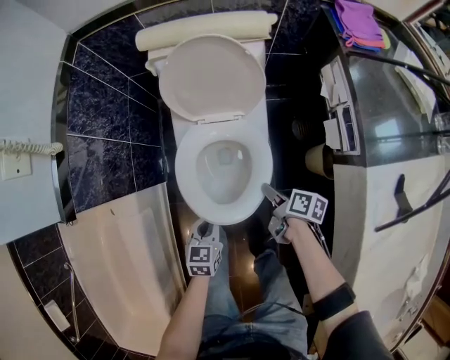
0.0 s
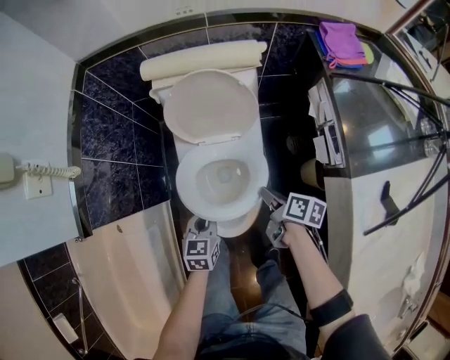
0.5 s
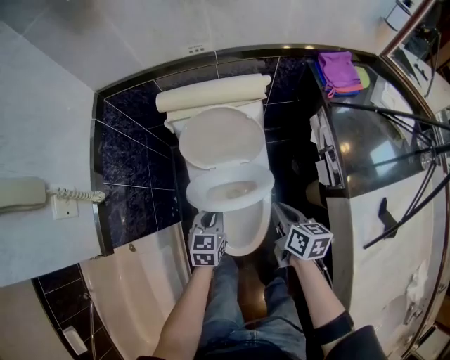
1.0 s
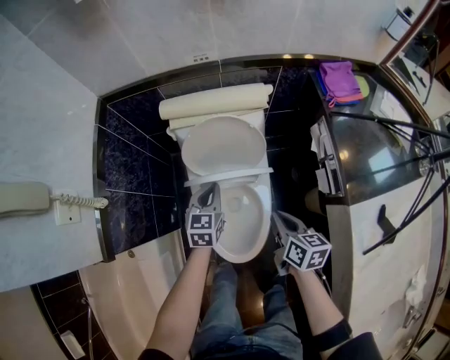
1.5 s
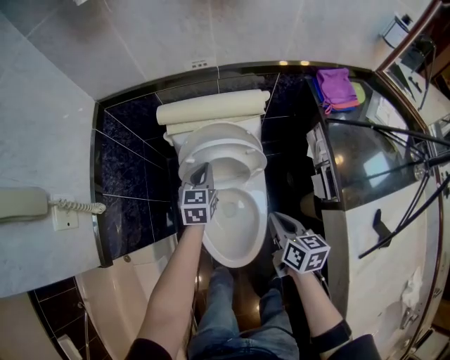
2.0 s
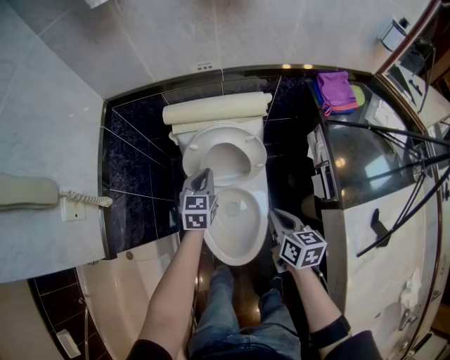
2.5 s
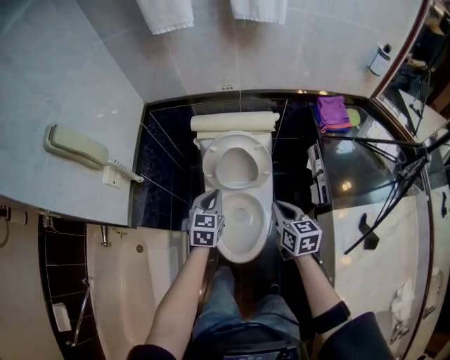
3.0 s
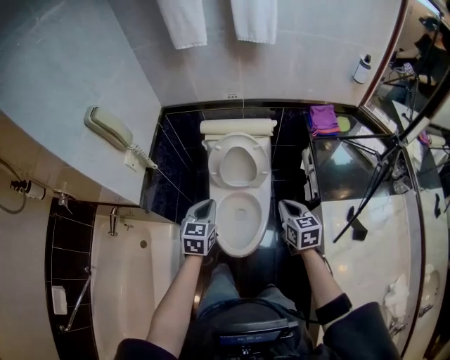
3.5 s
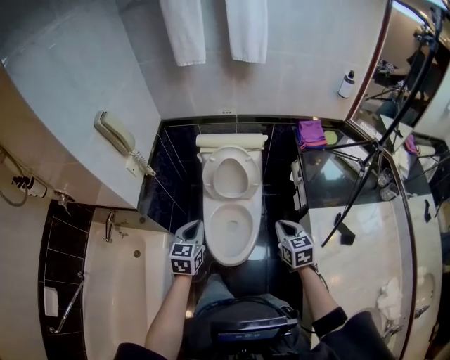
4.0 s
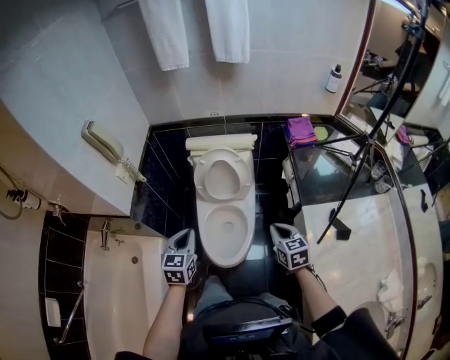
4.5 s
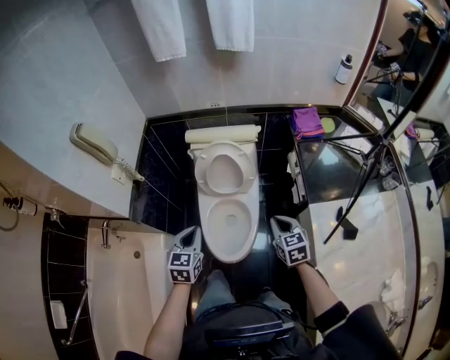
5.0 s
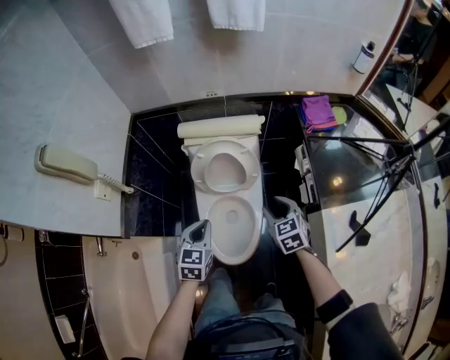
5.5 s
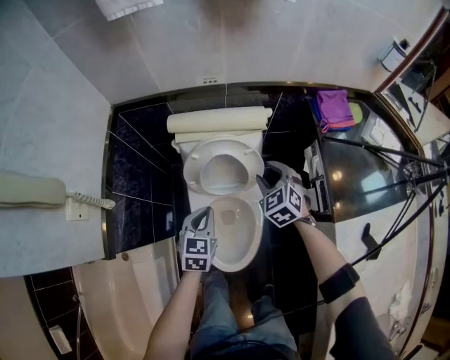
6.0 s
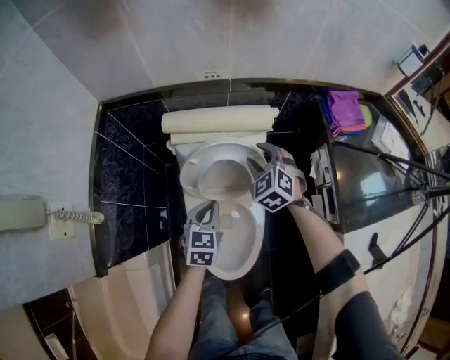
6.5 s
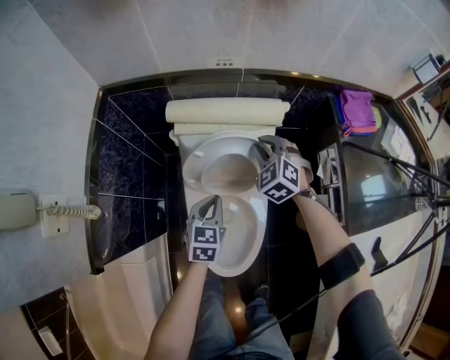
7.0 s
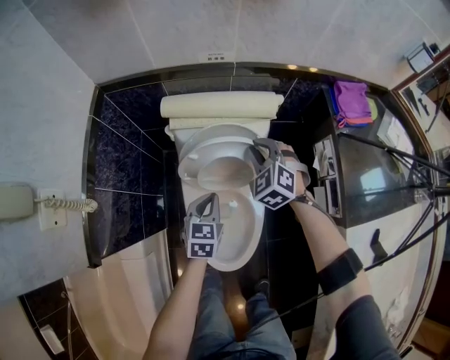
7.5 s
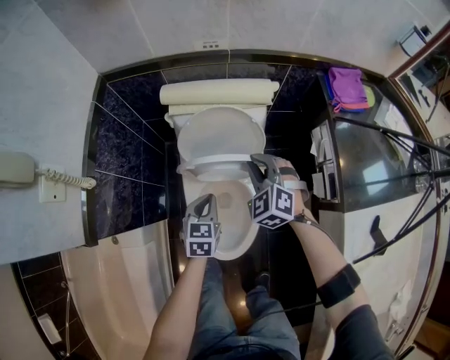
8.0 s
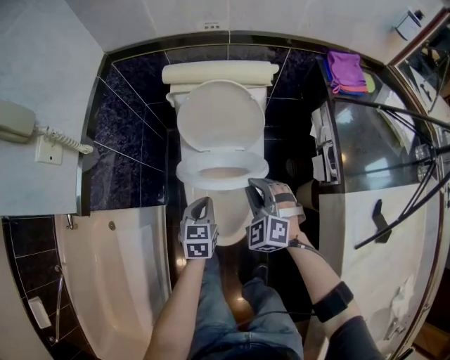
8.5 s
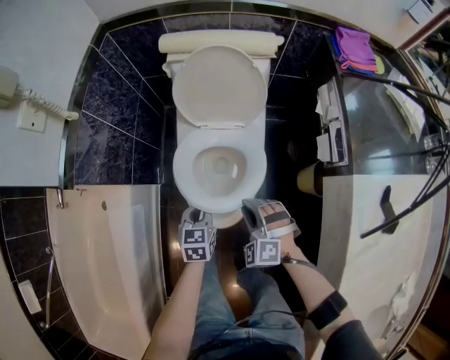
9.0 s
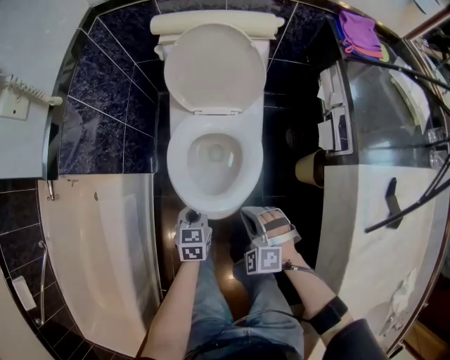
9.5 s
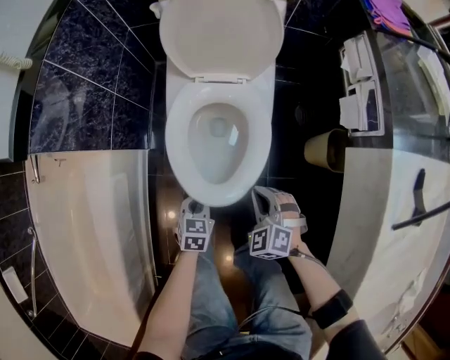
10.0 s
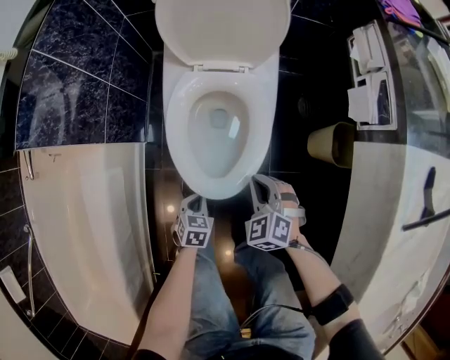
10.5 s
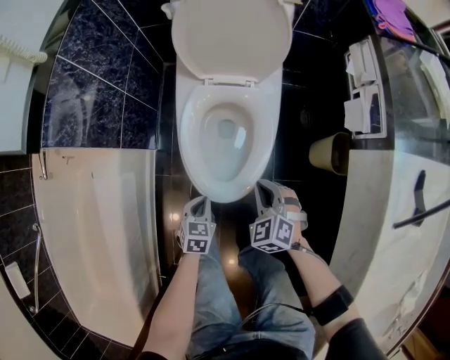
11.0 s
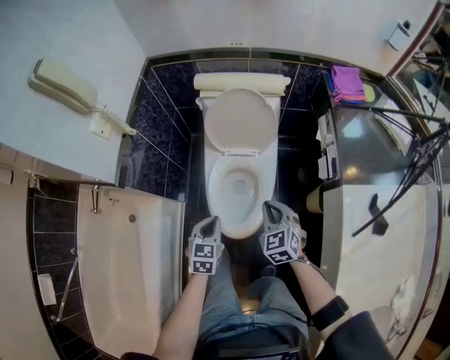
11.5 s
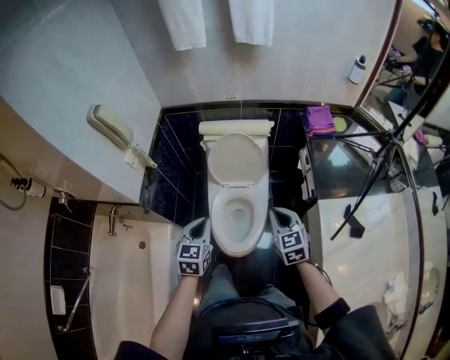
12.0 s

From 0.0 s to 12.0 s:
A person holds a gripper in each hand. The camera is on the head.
From 0.0 s to 2.0 s: The right gripper is displaced upward and forward by about 25 cm, changes its angle by some 40 degrees, and closes up. Meanwhile the left gripper is displaced forward and upward by about 40 cm.
From 2.0 s to 4.0 s: The right gripper moves backward and upward, approximately 25 cm, and turns by about 30 degrees. The left gripper heads backward and upward, covering roughly 40 cm.
From 4.0 s to 6.0 s: The left gripper heads forward and downward, covering approximately 30 cm. Meanwhile the right gripper heads forward, covering approximately 30 cm, turns by some 30 degrees, and opens its fingers.
From 6.0 s to 8.0 s: The left gripper moves downward, some 10 cm; the right gripper reaches approximately 10 cm forward, then returns, and closes its fingers.
From 8.0 s to 10.0 s: The two grippers go about 40 cm backward and downward.
From 10.0 s to 12.0 s: Both grippers travel together upward, roughly 50 cm. The left gripper rotates some 30 degrees. The right gripper changes its angle by about 40 degrees.

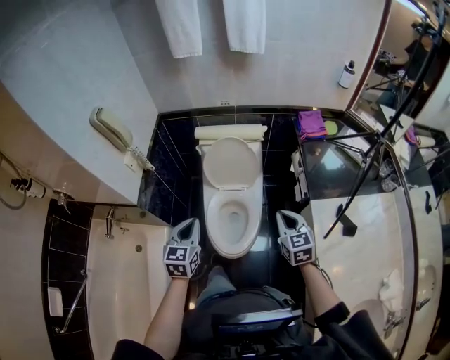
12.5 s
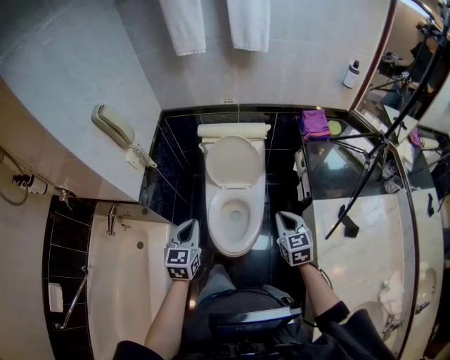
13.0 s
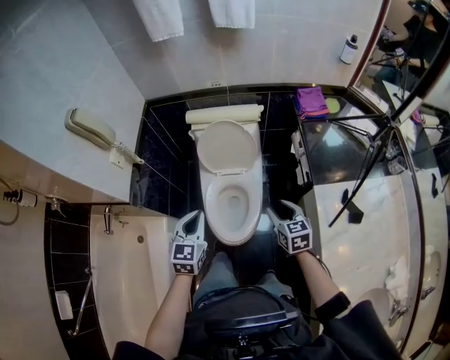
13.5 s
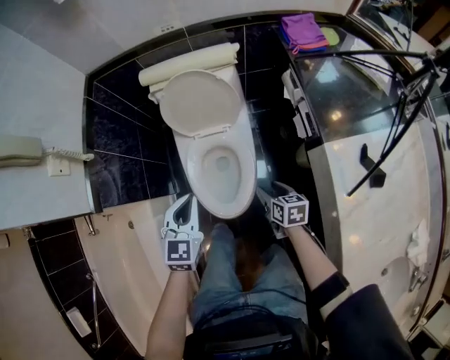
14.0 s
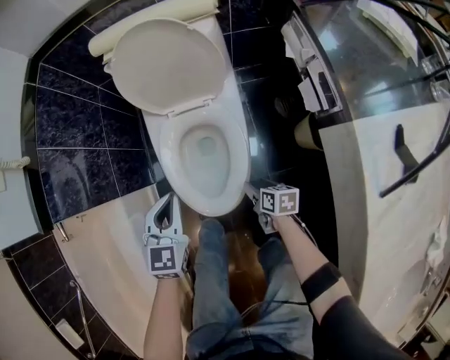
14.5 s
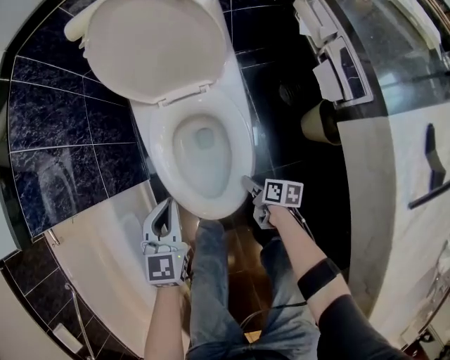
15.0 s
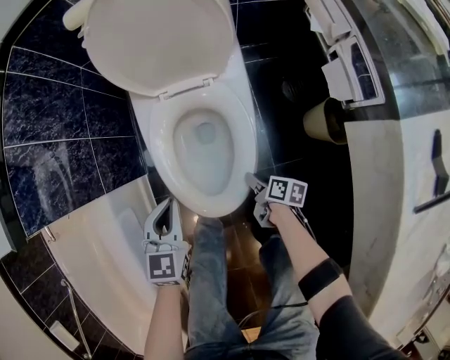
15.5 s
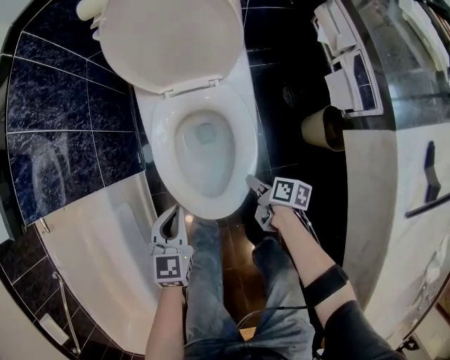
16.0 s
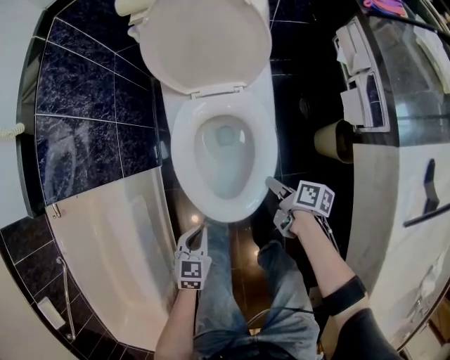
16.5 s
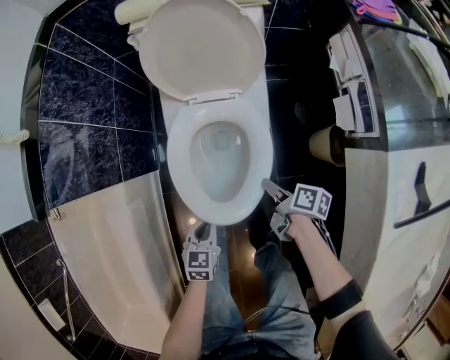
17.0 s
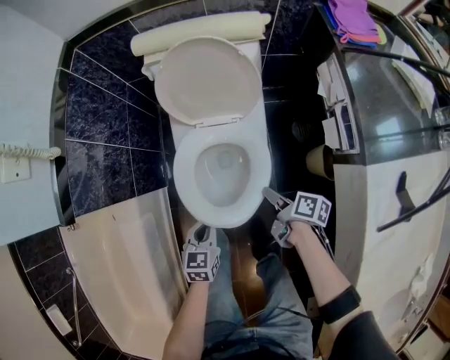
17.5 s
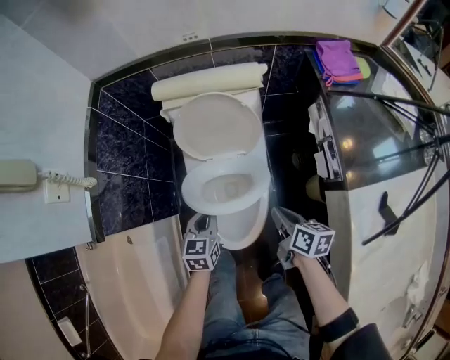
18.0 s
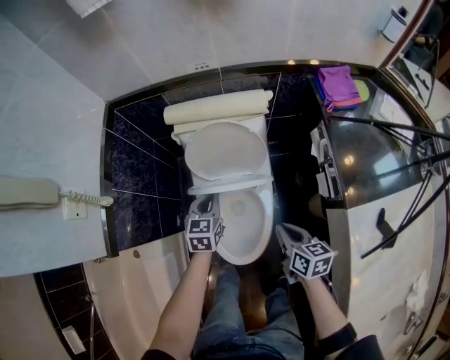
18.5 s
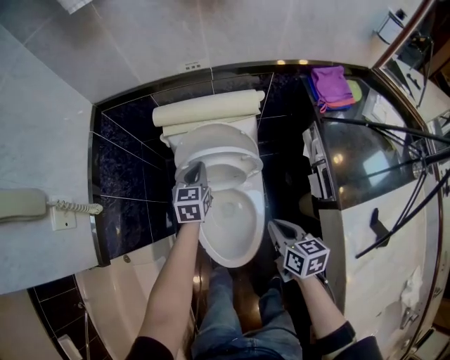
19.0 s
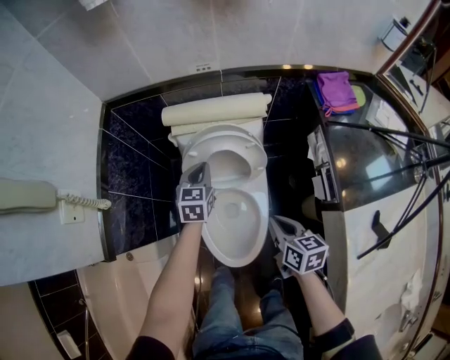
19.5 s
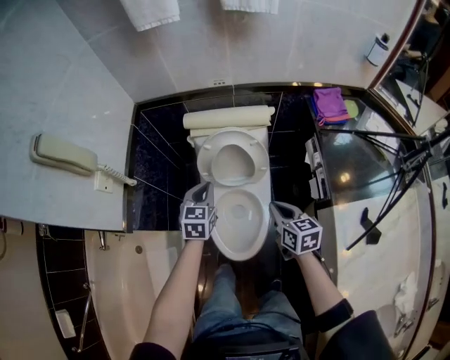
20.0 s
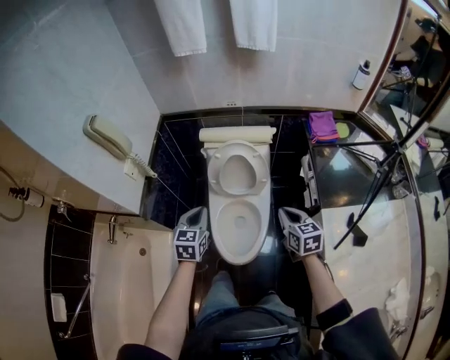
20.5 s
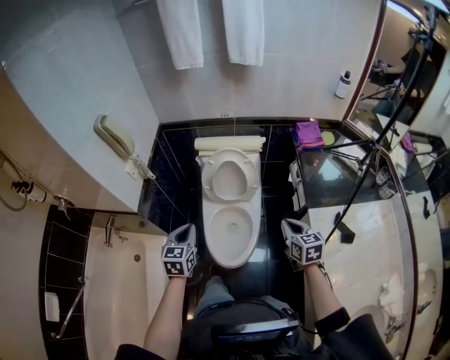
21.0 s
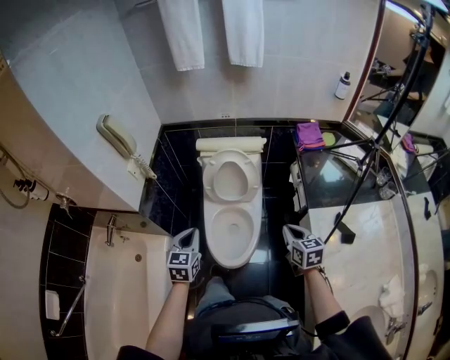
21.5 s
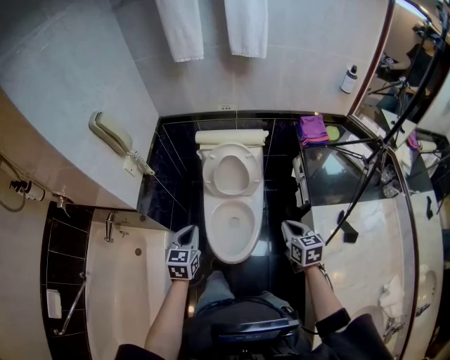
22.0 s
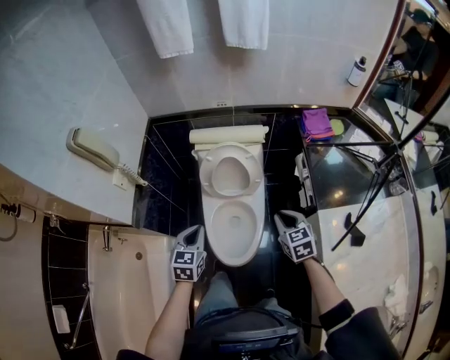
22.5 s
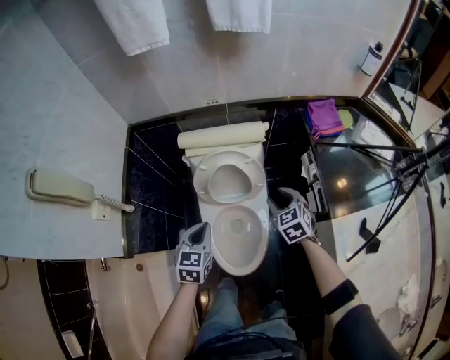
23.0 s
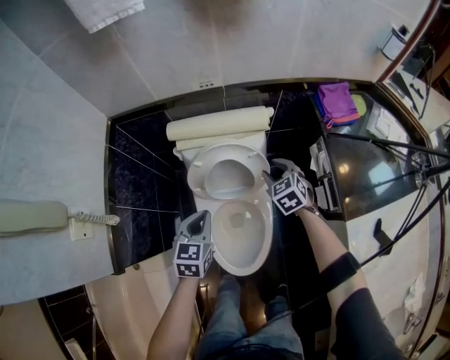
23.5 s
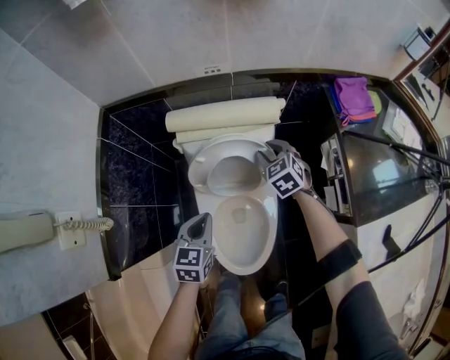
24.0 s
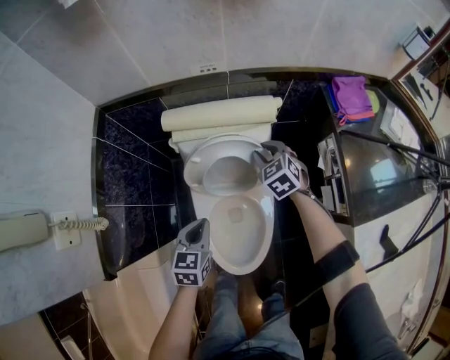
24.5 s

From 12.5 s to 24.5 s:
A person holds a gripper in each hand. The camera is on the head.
From 12.5 s to 14.5 s: The left gripper heads downward, covering roughly 30 cm; the right gripper heads downward, covering some 50 cm, rotates around the line of its fingers by approximately 50 degrees, clockwise from behind, and opens its fingers.
From 14.5 s to 16.5 s: The right gripper travels downward and back again, approximately 10 cm each way, rotates approximately 30 degrees, and closes; the left gripper shifts some 20 cm downward and backward, and turns by about 20 degrees.
From 16.5 s to 18.5 s: The right gripper goes roughly 30 cm upward, rotates around the line of its fingers by approximately 40 degrees, counterclockwise from behind, and closes. The left gripper shifts about 40 cm forward and upward.
From 18.5 s to 20.5 s: The left gripper travels upward and backward by roughly 25 cm. The right gripper is displaced upward by approximately 15 cm, and swivels roughly 20 degrees.
From 20.5 s to 22.5 s: The right gripper goes backward and returns, about 10 cm each way. Meanwhile the left gripper goes backward and returns, about 10 cm each way.
From 22.5 s to 24.5 s: The left gripper heads downward and forward, covering approximately 25 cm, while the right gripper moves forward and downward, about 40 cm.

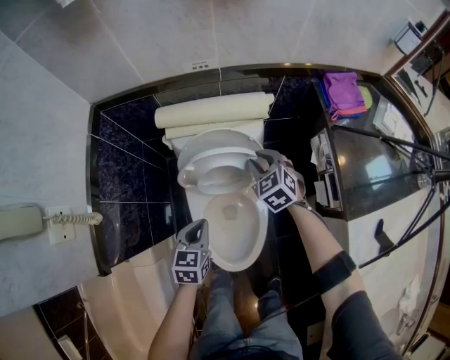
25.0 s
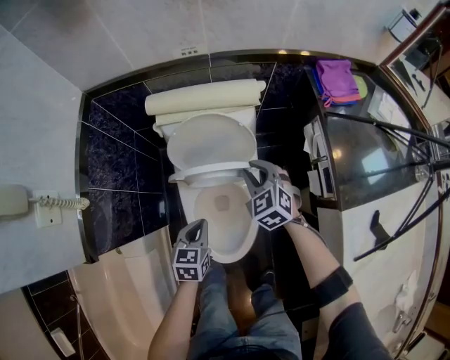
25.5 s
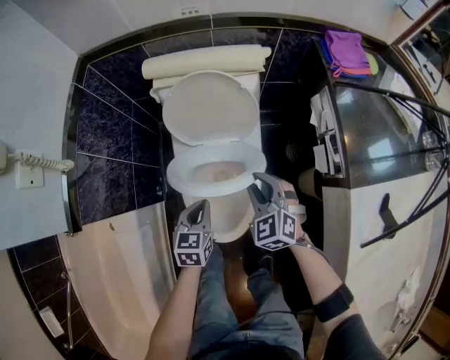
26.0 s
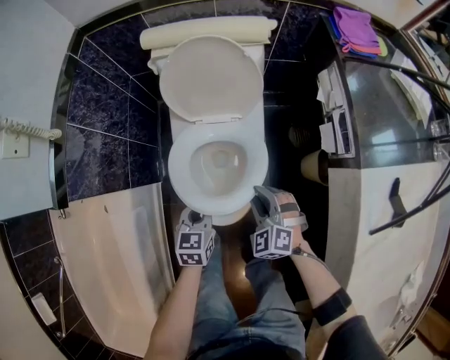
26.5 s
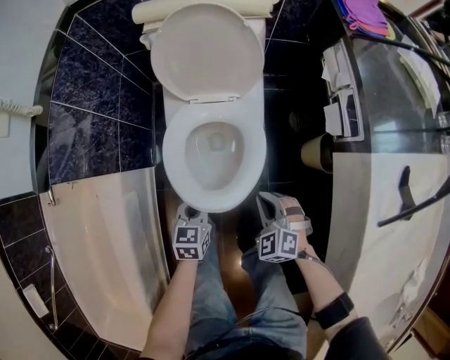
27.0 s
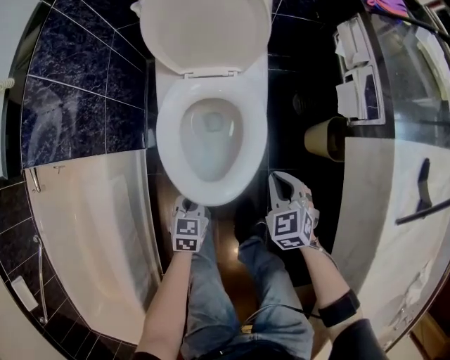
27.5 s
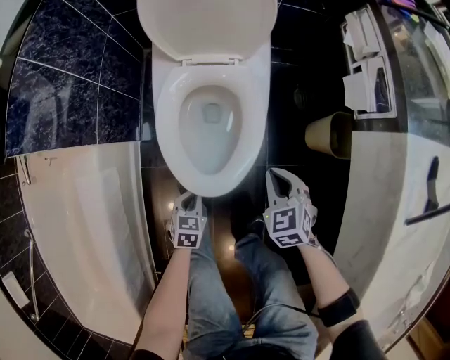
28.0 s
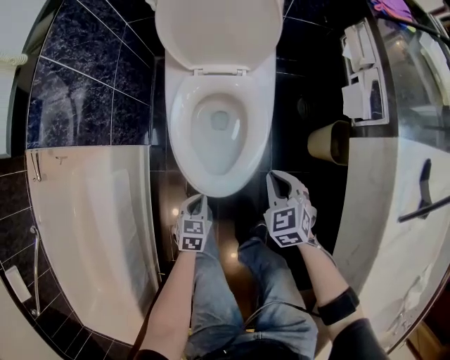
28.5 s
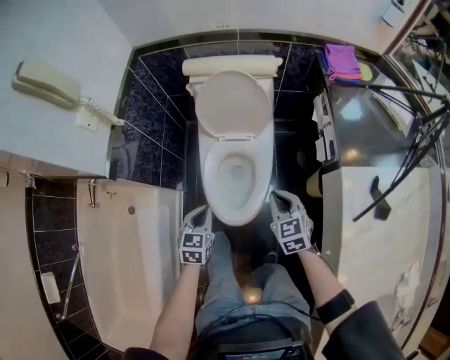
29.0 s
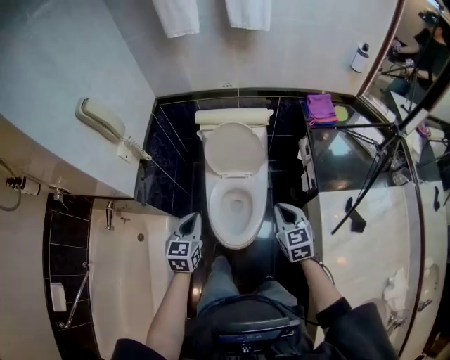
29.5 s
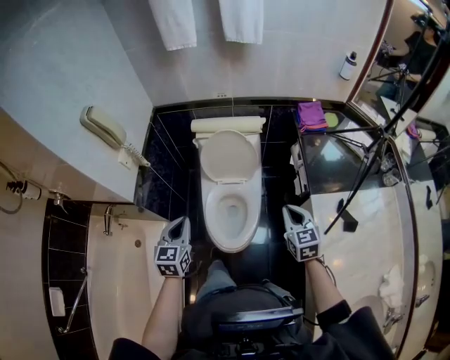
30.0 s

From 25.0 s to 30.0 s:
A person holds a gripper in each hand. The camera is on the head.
From 25.0 s to 27.5 s: The left gripper goes approximately 40 cm downward and backward; the right gripper heads backward and downward, covering roughly 40 cm, and closes.
From 27.5 s to 30.0 s: Both grippers travel together upward, roughly 50 cm. The left gripper swivels about 30 degrees, while the right gripper swivels approximately 30 degrees.
